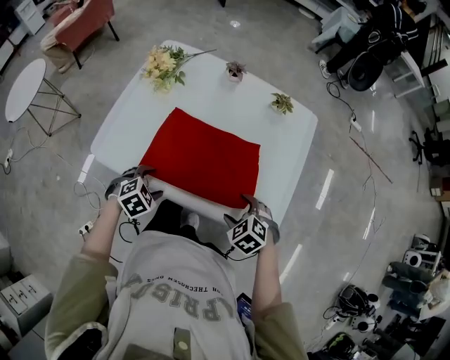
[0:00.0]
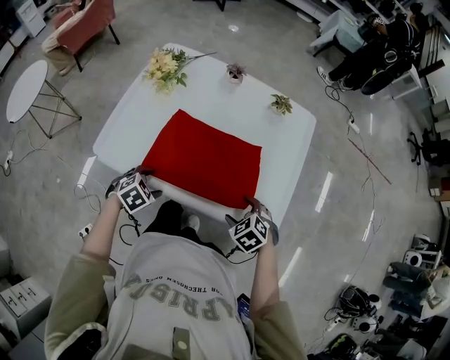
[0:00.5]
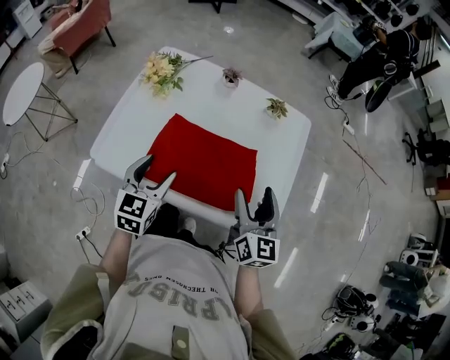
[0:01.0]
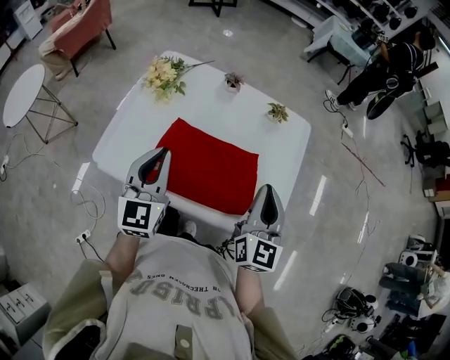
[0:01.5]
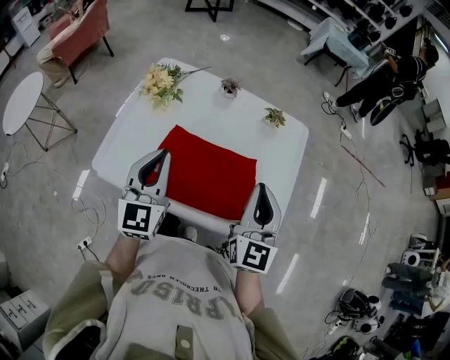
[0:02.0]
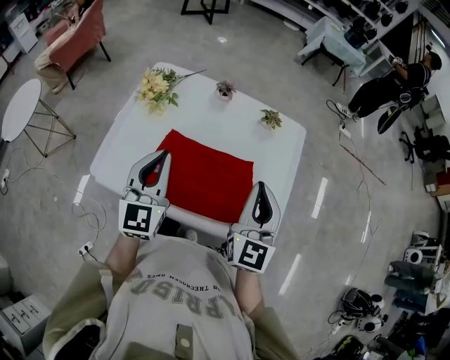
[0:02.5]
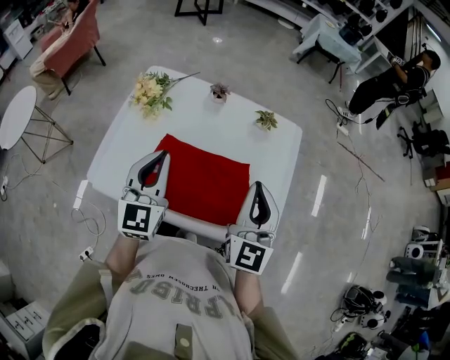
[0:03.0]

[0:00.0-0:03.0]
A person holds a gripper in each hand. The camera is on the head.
0:00.0 to 0:01.5: The grippers both shift upward by roughly 25 cm. The left gripper points its fingers roughly 60 degrees further upward, and closes. The right gripper angles its fingers upward, by about 60 degrees, and closes its fingers.
0:01.5 to 0:03.0: The grippers stay close to where they were, moving slightly.

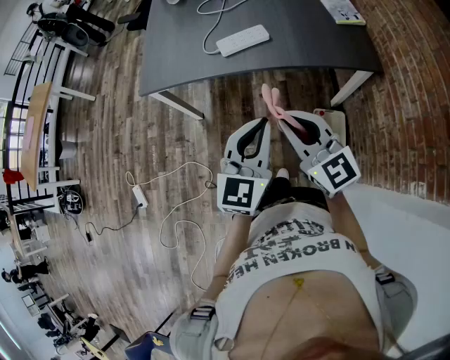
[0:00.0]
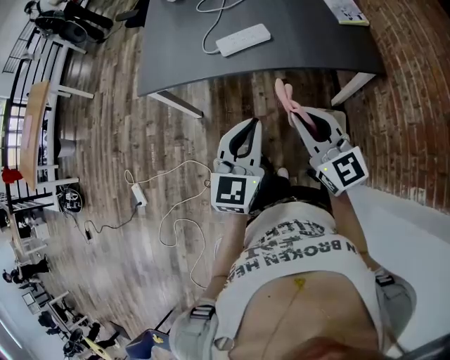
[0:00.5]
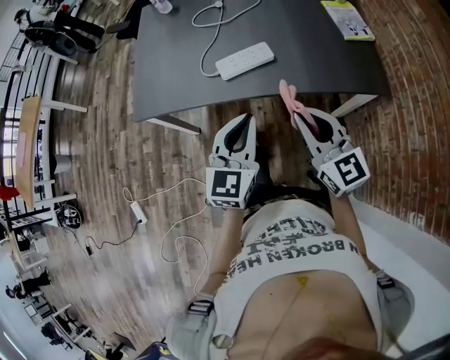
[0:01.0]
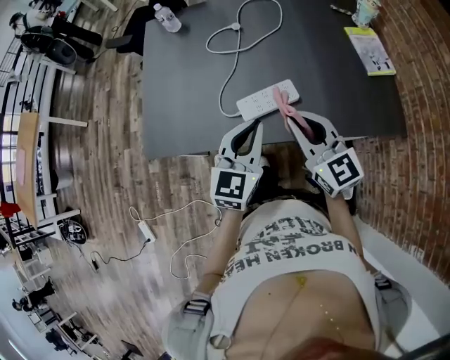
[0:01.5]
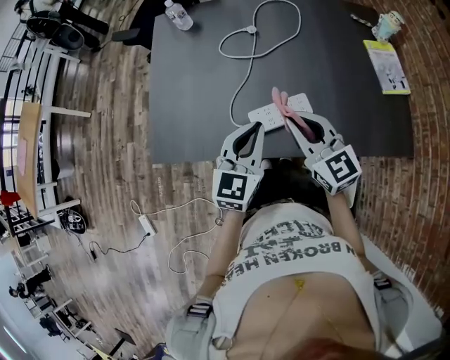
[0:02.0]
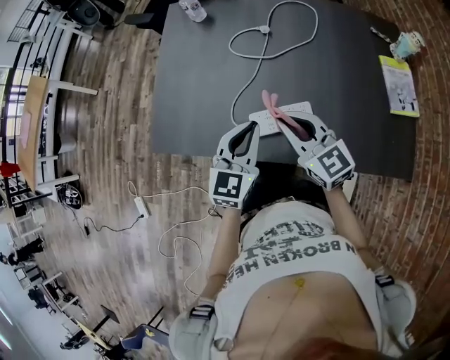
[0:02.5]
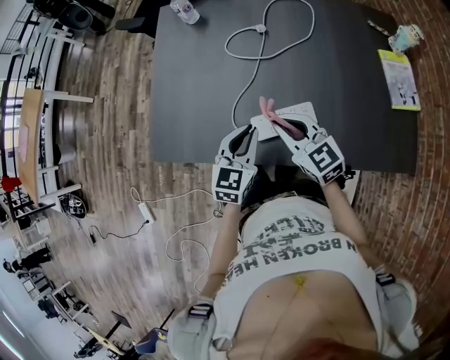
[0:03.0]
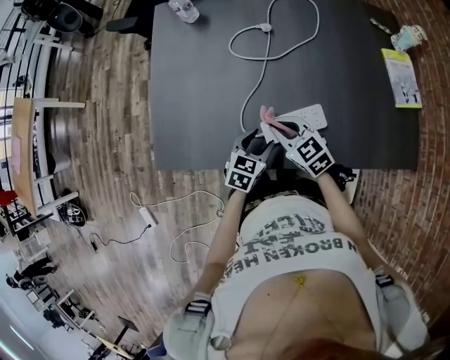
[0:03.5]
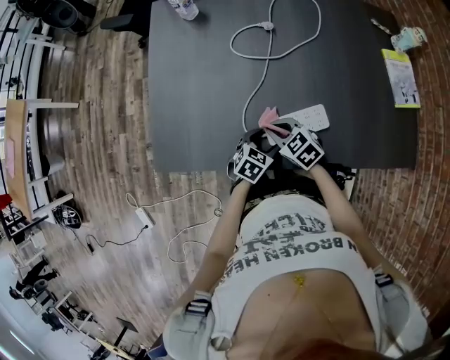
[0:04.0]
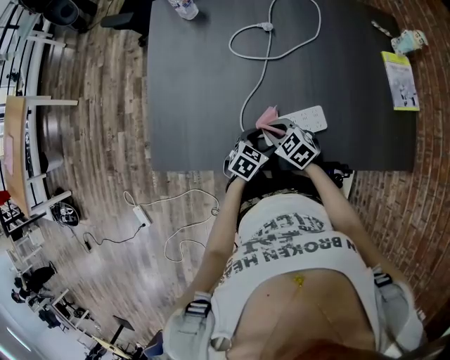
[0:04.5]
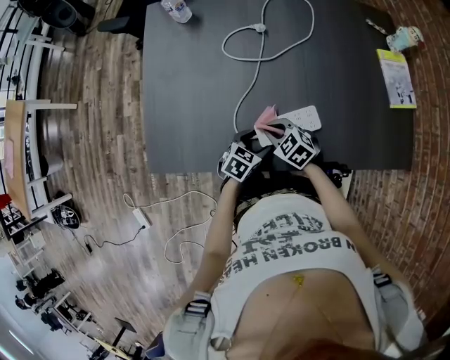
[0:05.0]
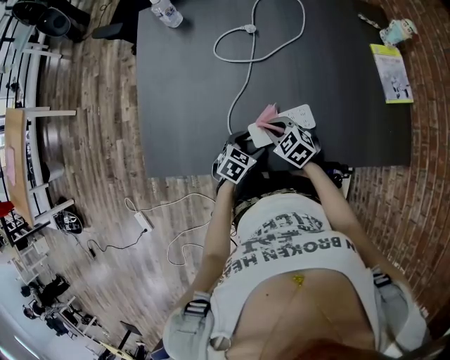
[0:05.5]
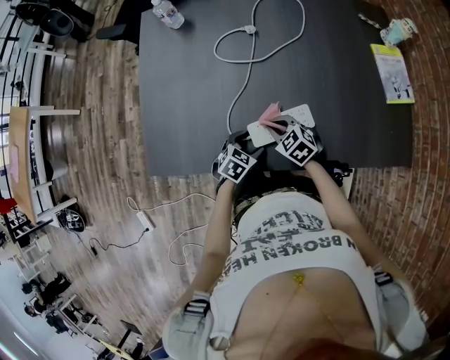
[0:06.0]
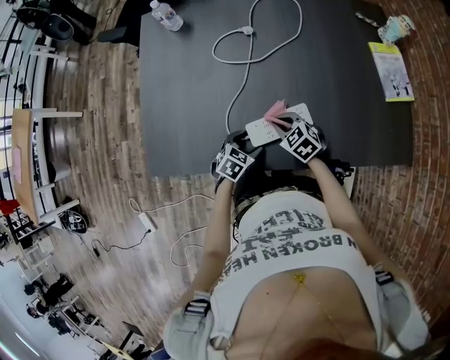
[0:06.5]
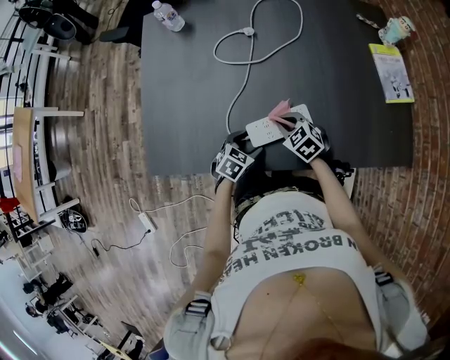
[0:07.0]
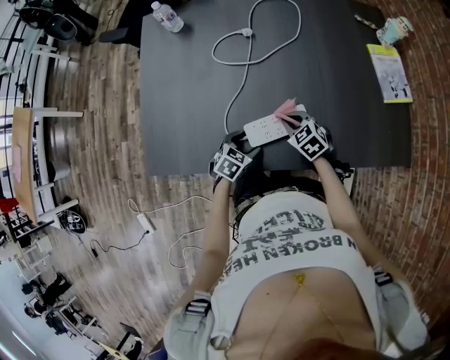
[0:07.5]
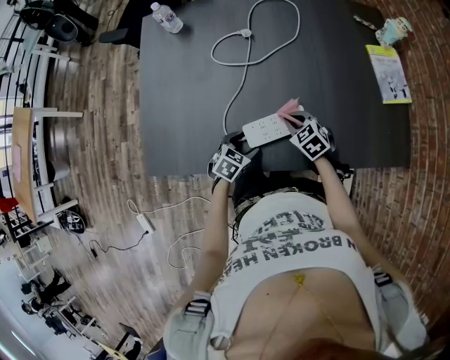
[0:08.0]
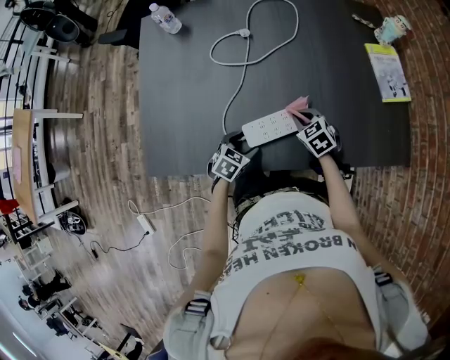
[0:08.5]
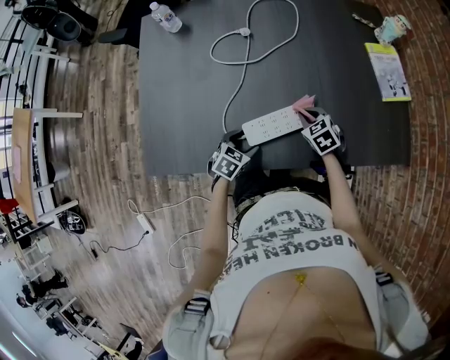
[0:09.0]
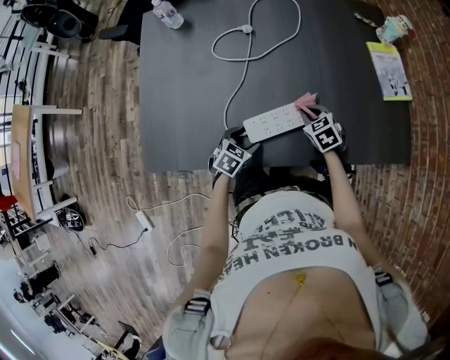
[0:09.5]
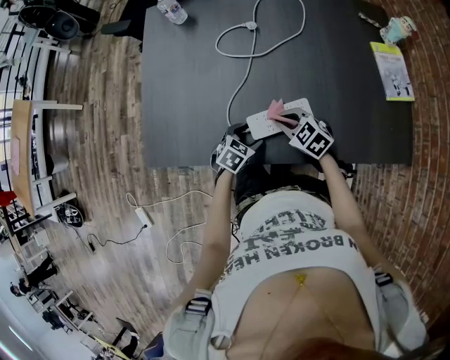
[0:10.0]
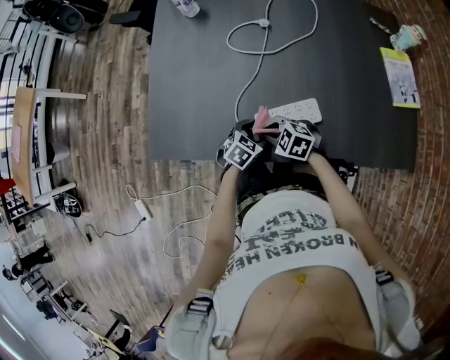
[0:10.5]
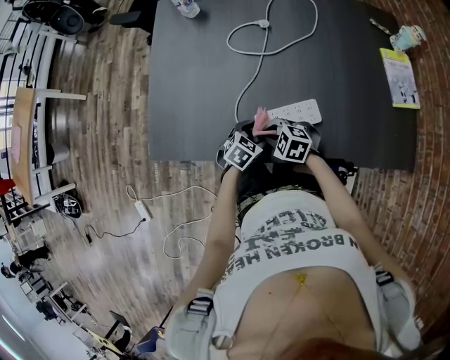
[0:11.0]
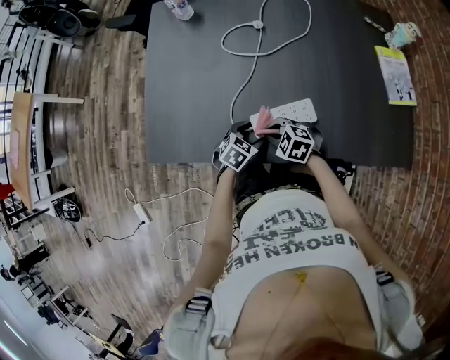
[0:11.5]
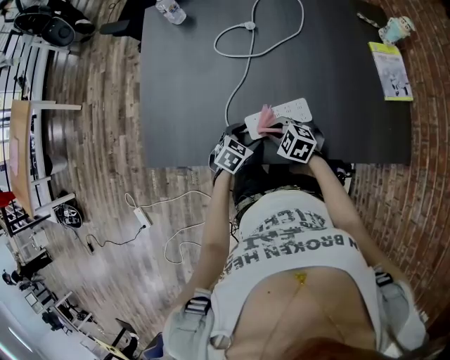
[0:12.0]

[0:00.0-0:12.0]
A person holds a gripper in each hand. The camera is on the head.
0:00.0 to 0:02.0: The two grippers travel together, forward, about 40 cm.
0:02.0 to 0:04.0: The right gripper moves downward and to the left, approximately 25 cm, and tilts its fingers some 40 degrees downward; the left gripper travels downward by approximately 25 cm, angles its fingers downward, by some 30 degrees, and opens.
0:04.0 to 0:06.0: The right gripper shifts about 5 cm to the right.
0:06.0 to 0:08.0: The right gripper moves to the right, some 10 cm.
0:08.0 to 0:10.0: The right gripper is displaced to the left by roughly 5 cm.

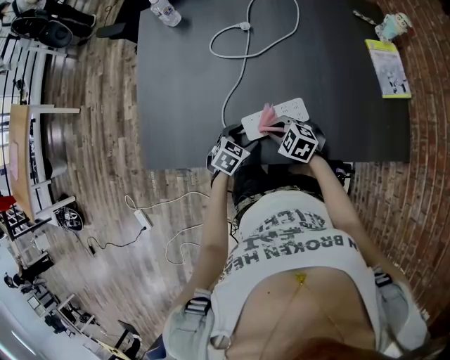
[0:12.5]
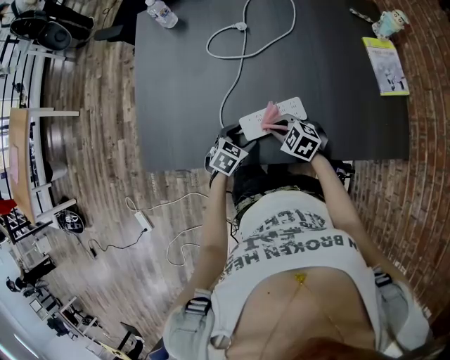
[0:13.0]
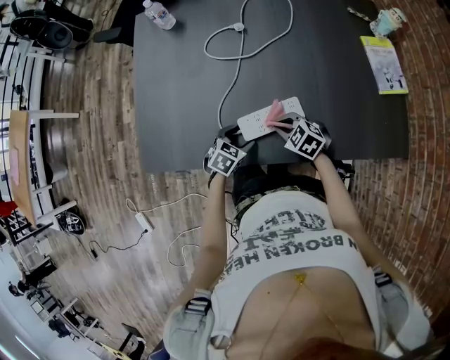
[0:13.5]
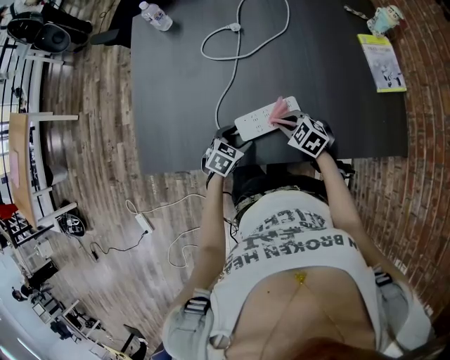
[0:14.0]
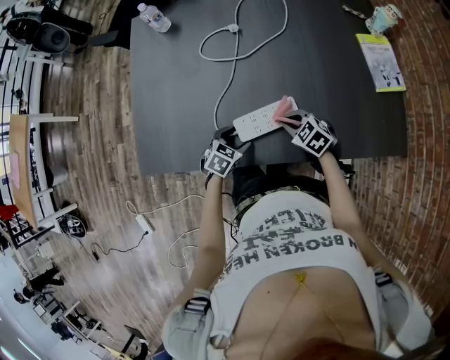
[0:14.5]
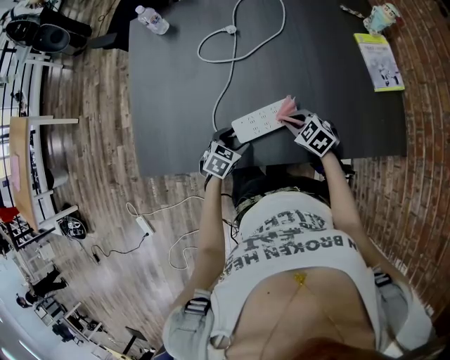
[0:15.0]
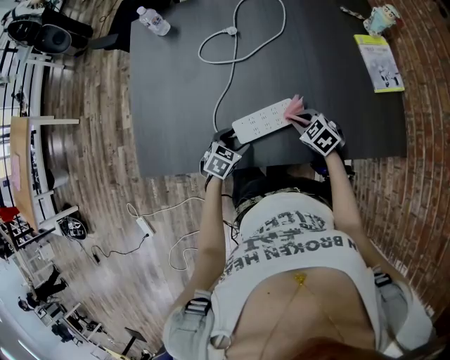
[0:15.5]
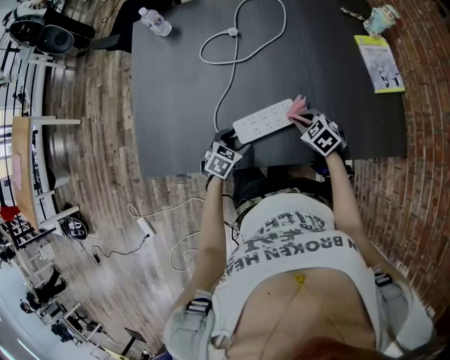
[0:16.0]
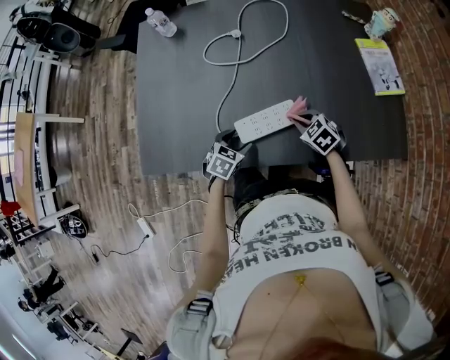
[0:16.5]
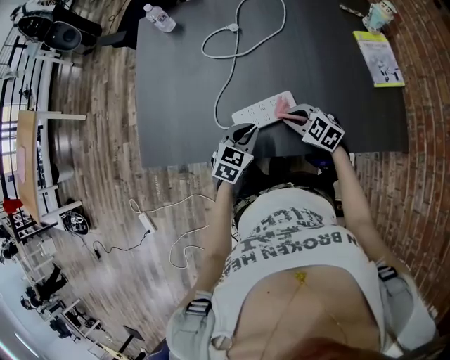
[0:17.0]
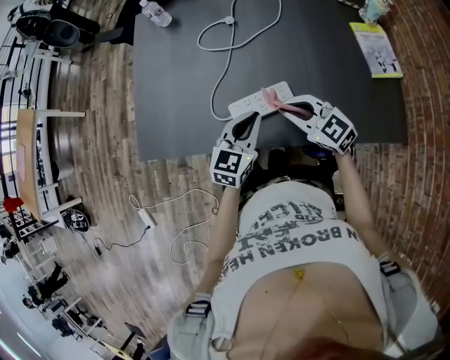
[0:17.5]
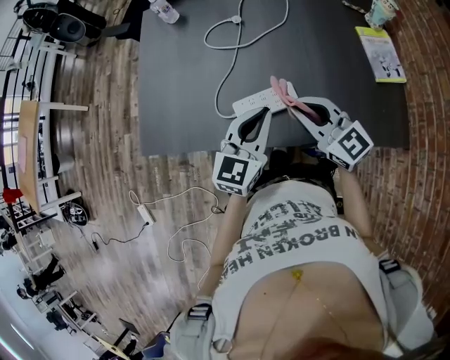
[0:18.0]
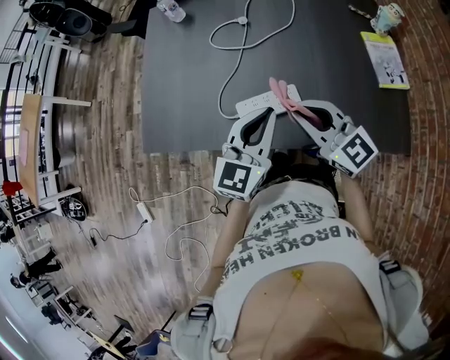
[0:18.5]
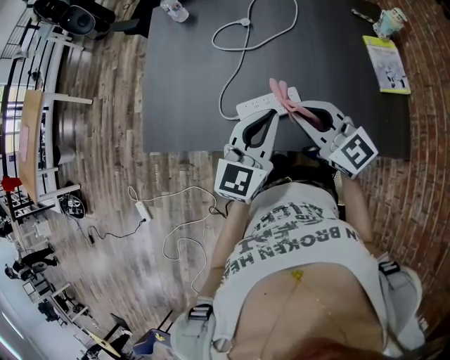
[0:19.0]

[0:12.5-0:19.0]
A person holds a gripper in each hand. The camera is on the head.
0:12.5 to 0:14.5: The right gripper heads to the right, covering approximately 10 cm.
0:14.5 to 0:17.0: The left gripper goes about 10 cm upward and to the right, and closes.
0:17.0 to 0:19.0: The two grippers go some 20 cm upward. The right gripper tips its fingers upward by approximately 40 degrees. Meanwhile the left gripper tilts its fingers some 30 degrees upward.

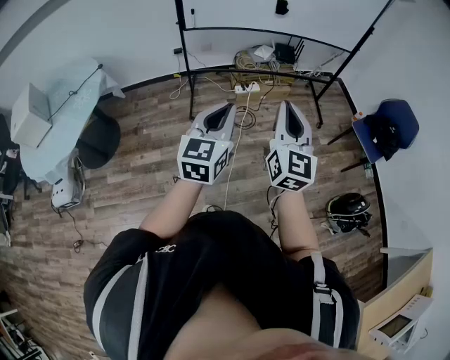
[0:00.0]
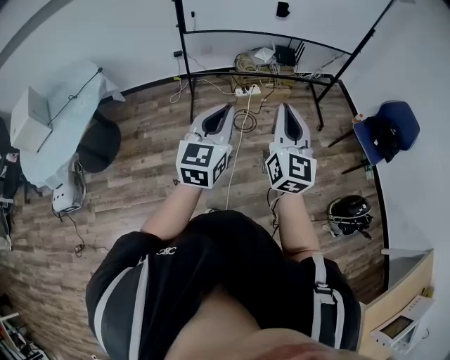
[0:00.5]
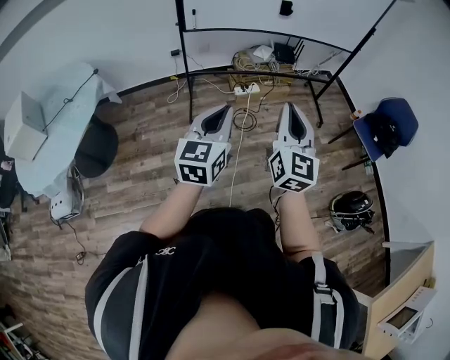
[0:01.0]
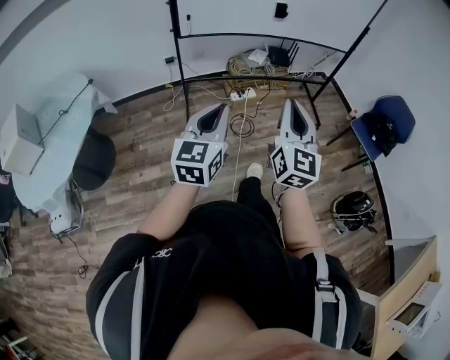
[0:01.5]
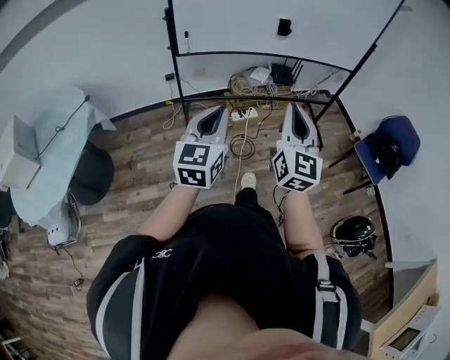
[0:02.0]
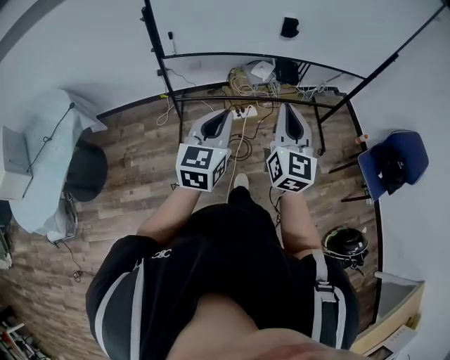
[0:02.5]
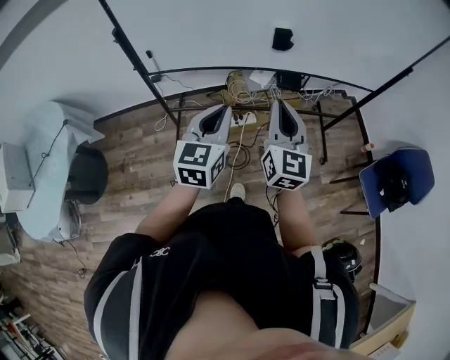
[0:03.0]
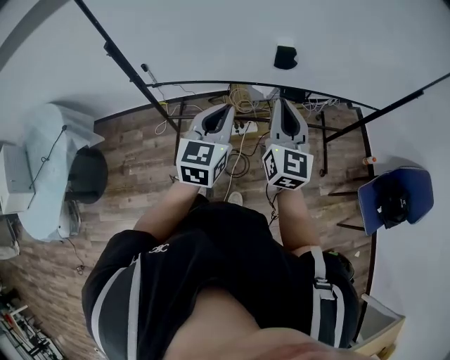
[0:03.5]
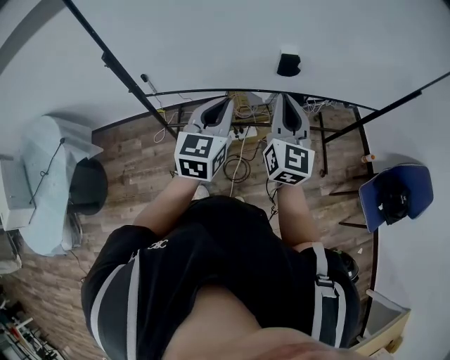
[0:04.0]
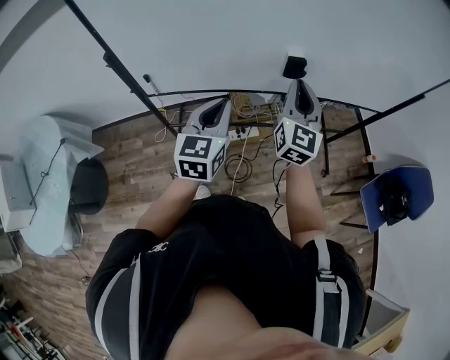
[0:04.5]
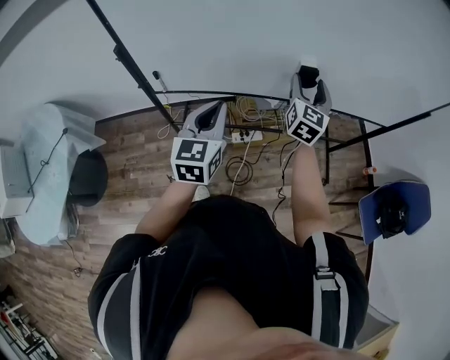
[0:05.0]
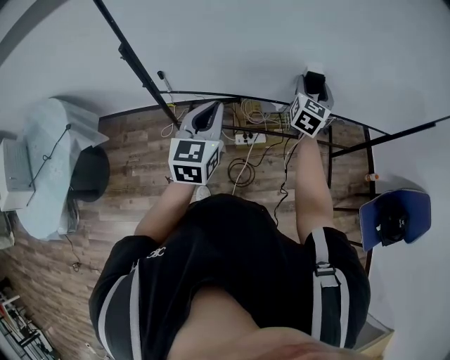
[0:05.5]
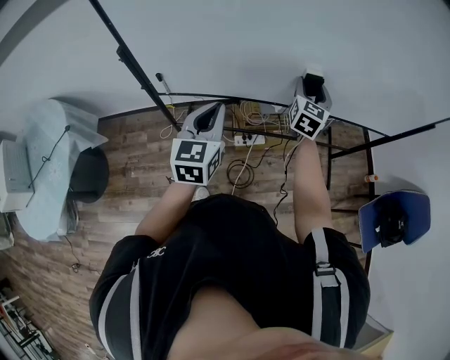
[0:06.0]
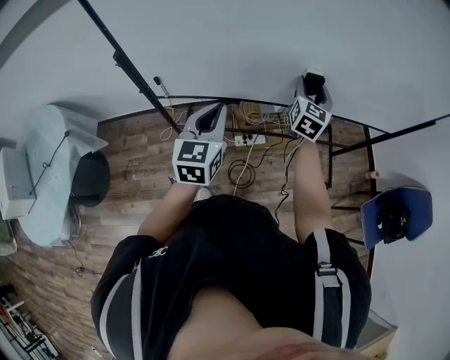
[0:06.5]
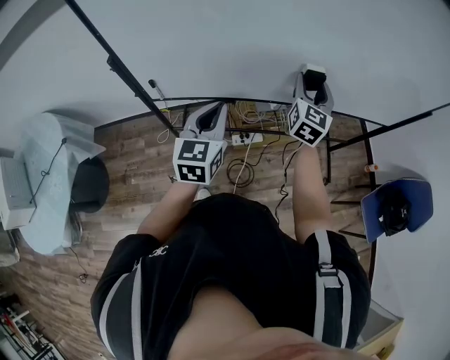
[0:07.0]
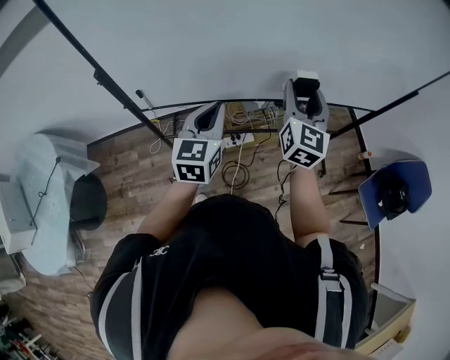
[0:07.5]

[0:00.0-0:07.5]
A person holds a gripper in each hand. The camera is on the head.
0:00.0 to 0:02.0: The right gripper travels forward by about 15 cm; the left gripper goes approximately 20 cm forward and to the left.
0:02.0 to 0:04.0: The pair of grippers is taken forward, some 50 cm.
0:04.0 to 0:05.5: The right gripper heads forward and downward, covering about 20 cm, and opens up, while the left gripper moves to the left, approximately 10 cm.
0:05.5 to 0:07.5: The left gripper ends up roughly 5 cm from where it was. Meanwhile the right gripper is displaced backward and upward by roughly 15 cm.
